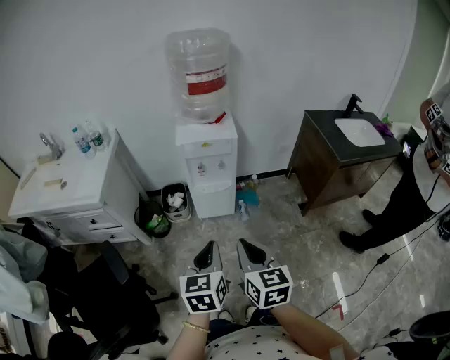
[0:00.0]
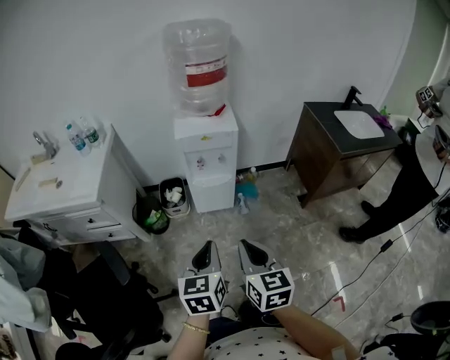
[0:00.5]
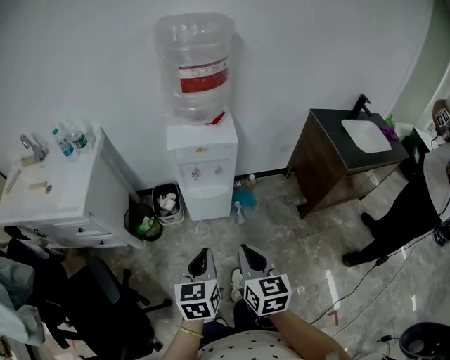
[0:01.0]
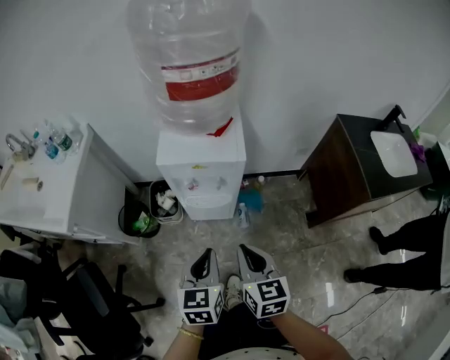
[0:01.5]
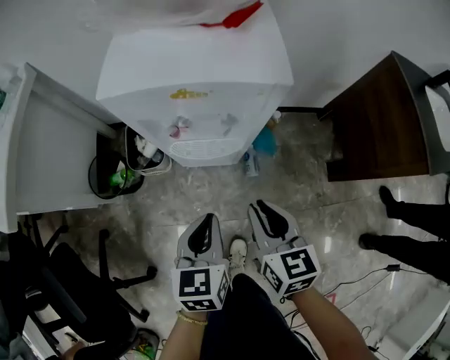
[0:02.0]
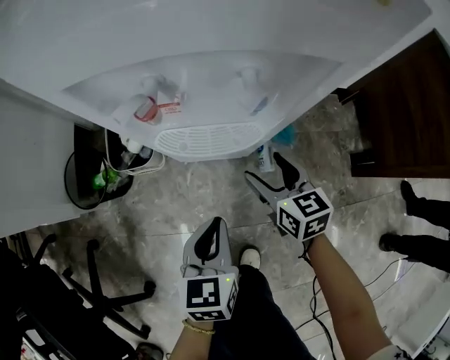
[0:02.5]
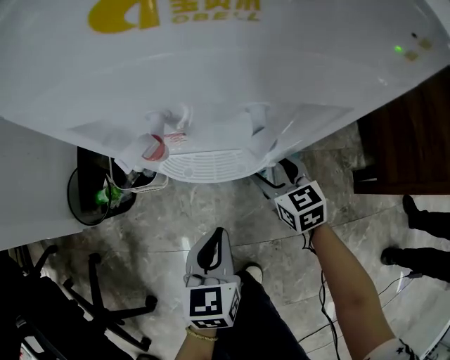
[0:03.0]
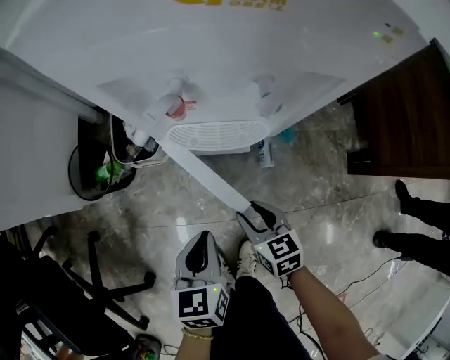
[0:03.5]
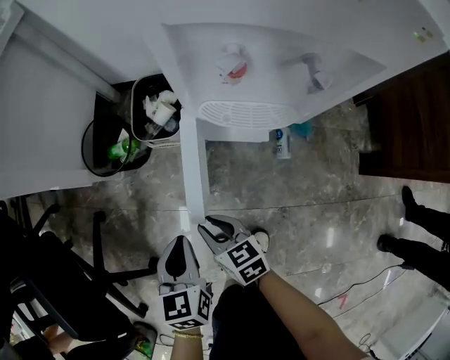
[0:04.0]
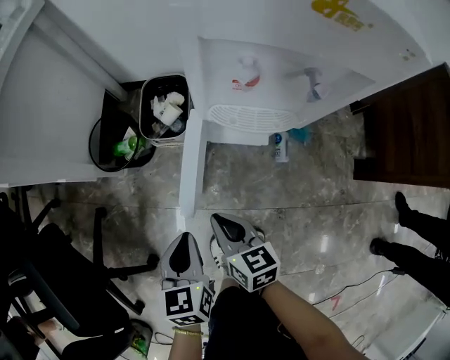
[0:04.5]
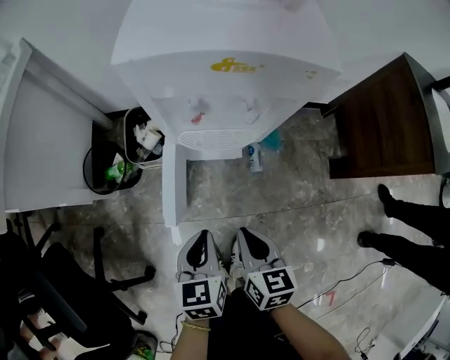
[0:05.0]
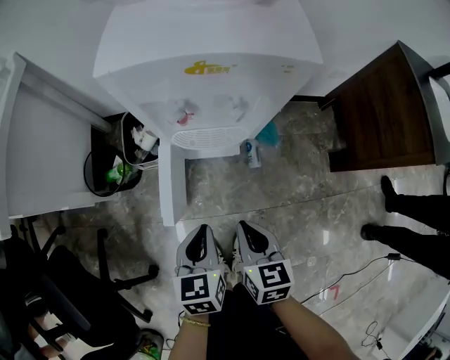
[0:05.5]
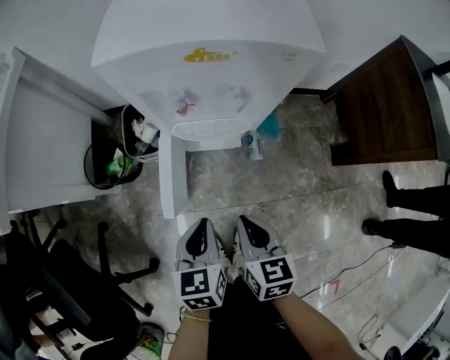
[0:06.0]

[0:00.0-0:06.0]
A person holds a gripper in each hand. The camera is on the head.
0:00.0 to 0:02.0: Both grippers travel together forward and downward, roughly 40 cm.
0:02.0 to 0:04.0: The right gripper is displaced downward by about 25 cm, swivels about 30 degrees, and opens and closes again; the left gripper ends up approximately 25 cm from where it was.
0:04.0 to 0:06.0: The right gripper heads upward, covering roughly 20 cm, and turns by some 30 degrees. The left gripper changes place by about 15 cm.

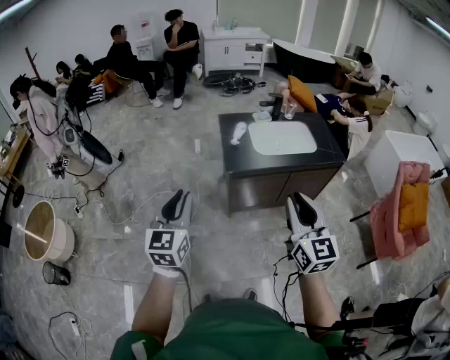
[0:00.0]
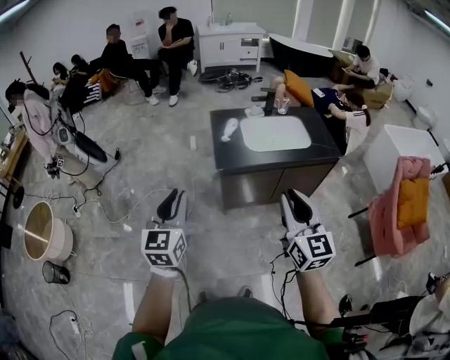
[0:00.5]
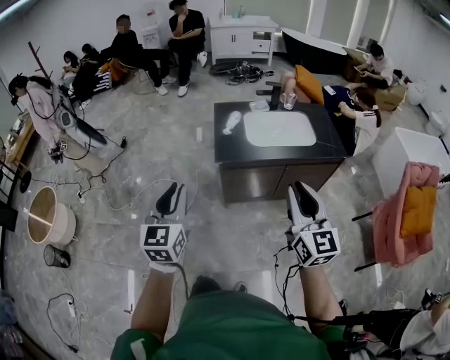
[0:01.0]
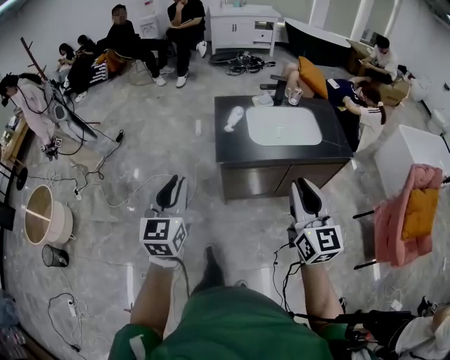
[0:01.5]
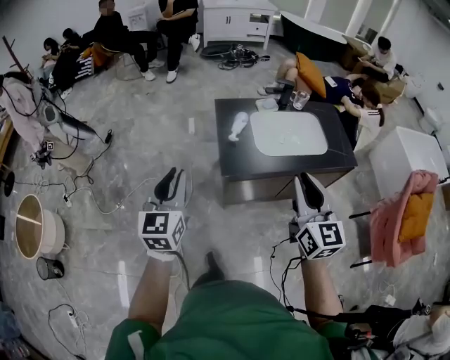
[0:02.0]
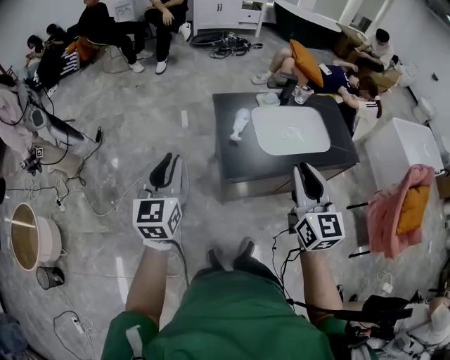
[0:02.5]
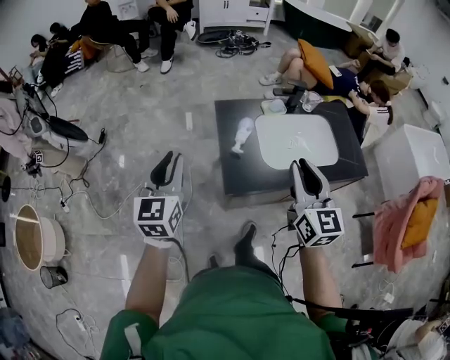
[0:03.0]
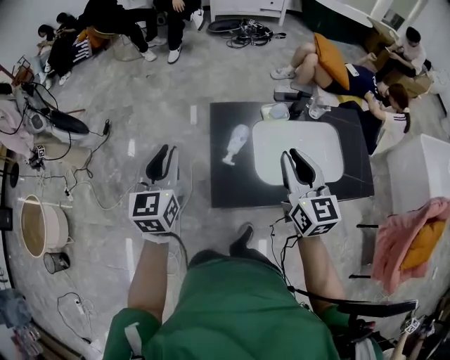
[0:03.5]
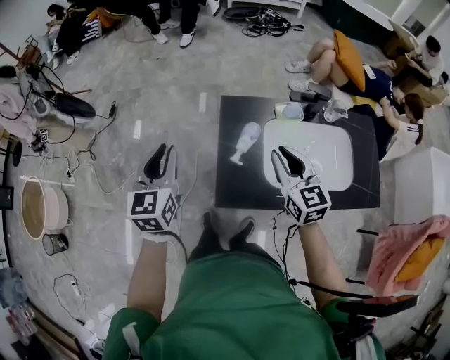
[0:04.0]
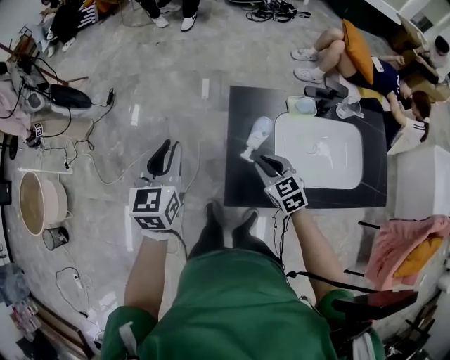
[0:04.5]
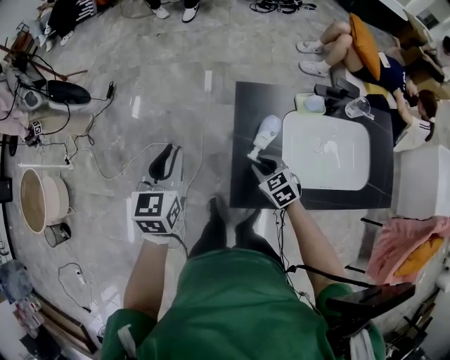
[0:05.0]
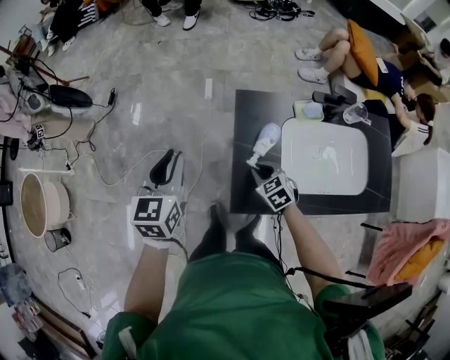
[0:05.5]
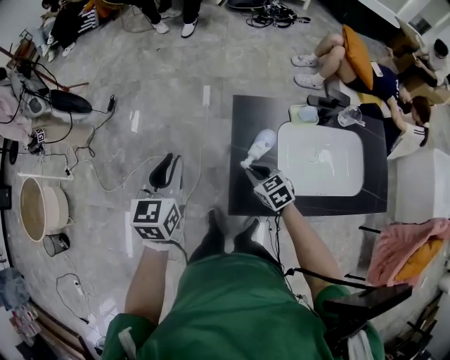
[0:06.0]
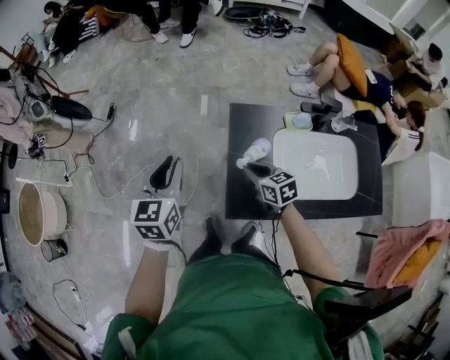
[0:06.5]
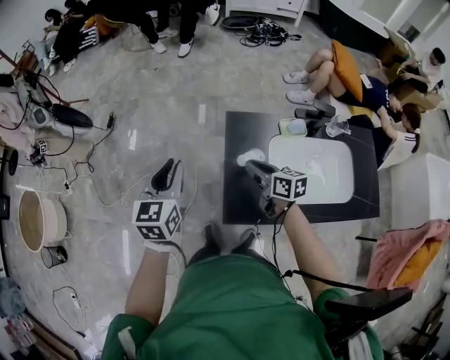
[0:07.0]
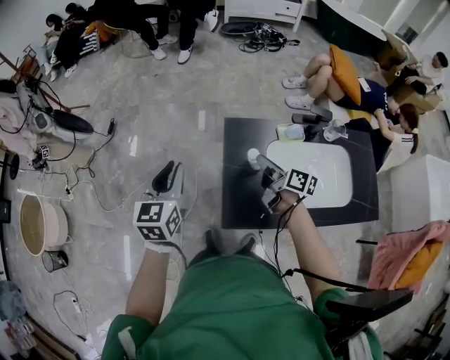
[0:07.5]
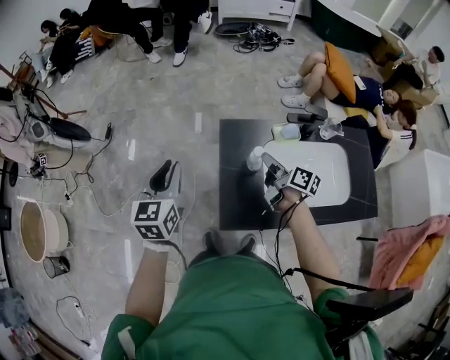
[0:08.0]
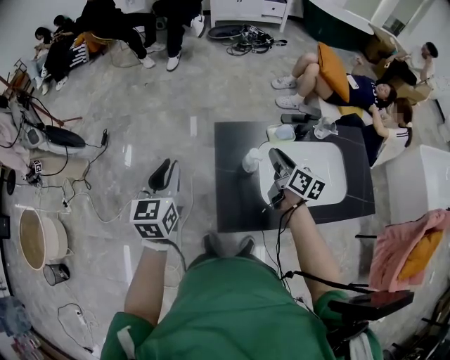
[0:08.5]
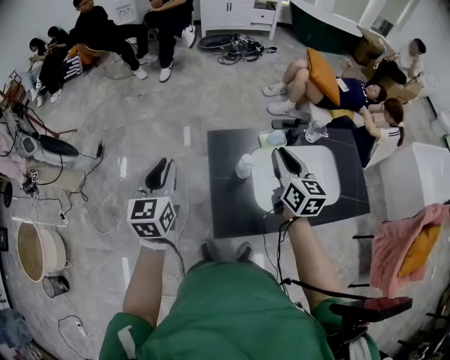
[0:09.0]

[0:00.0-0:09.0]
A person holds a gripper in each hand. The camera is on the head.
0:00.0 to 0:02.0: The two grippers go some 25 cm forward.
0:02.0 to 0:04.5: The right gripper travels forward and downward by approximately 50 cm, and tilts its fingers roughly 40 degrees downward, while the left gripper is displaced forward by approximately 35 cm.
0:04.5 to 0:07.0: The right gripper is displaced upward by some 5 cm, and swivels some 40 degrees.
0:07.0 to 0:09.0: The right gripper moves to the right and upward, about 20 cm, and rotates approximately 40 degrees. Meanwhile the left gripper moves roughly 5 cm.

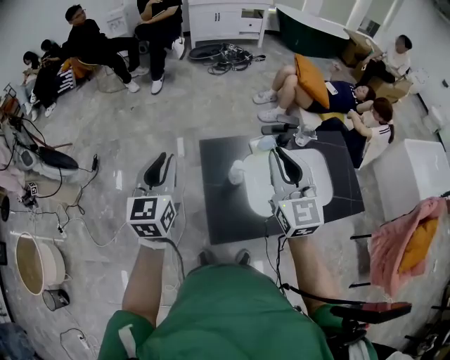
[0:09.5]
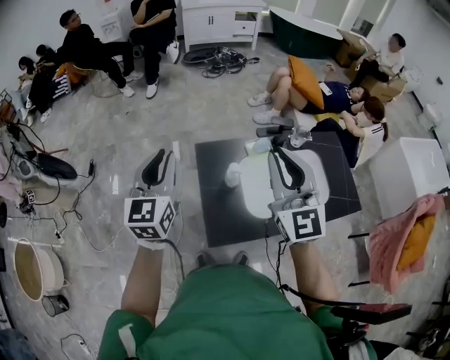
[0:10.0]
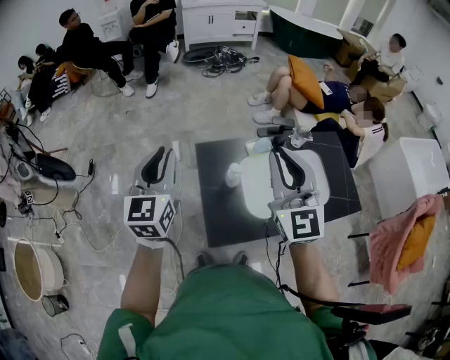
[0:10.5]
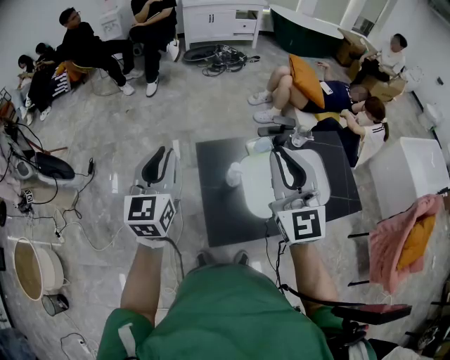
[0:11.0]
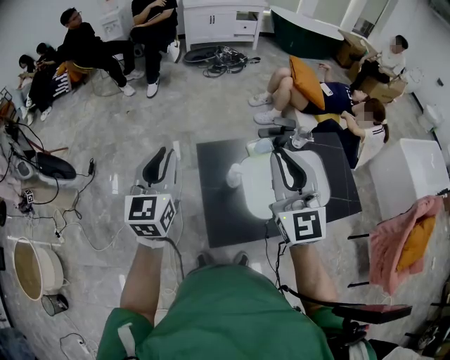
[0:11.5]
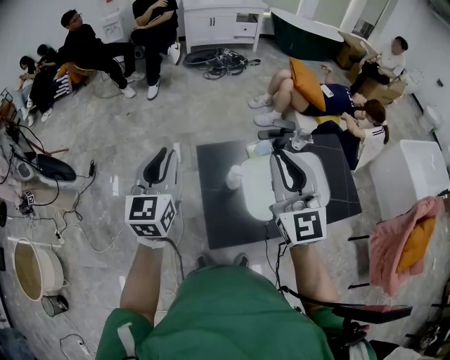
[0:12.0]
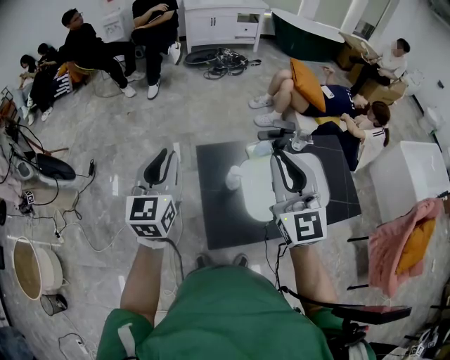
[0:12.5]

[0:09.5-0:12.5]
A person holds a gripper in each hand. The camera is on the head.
0:09.5 to 0:11.0: There are only small adjustments of the grippers.
0:11.0 to 0:12.5: Neither gripper changes place.

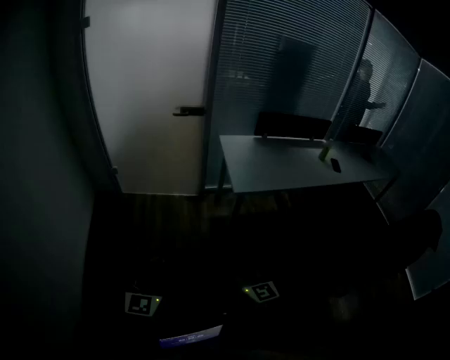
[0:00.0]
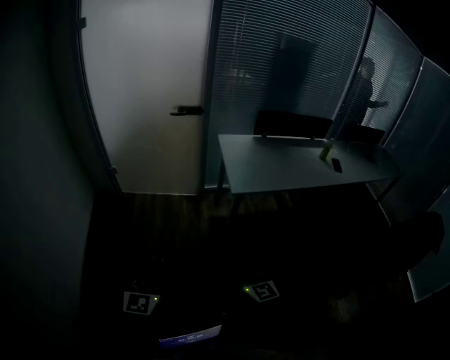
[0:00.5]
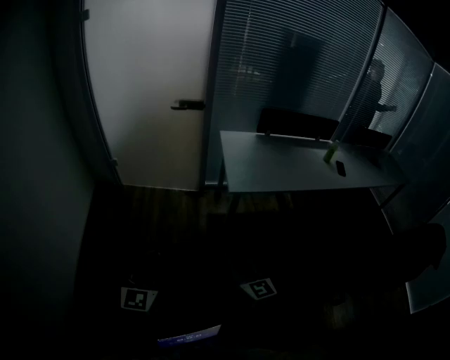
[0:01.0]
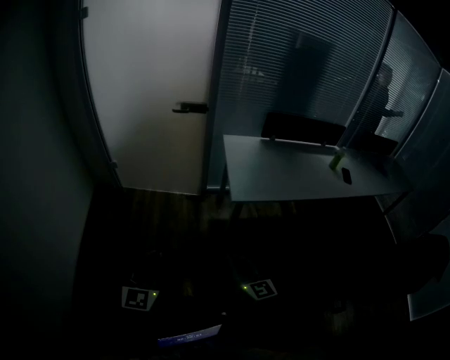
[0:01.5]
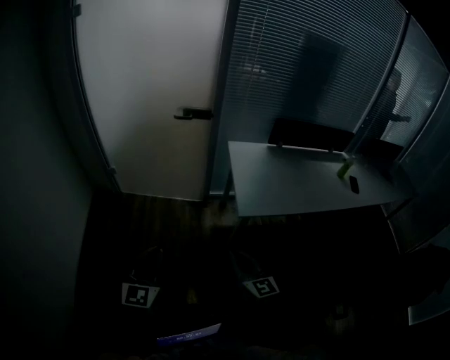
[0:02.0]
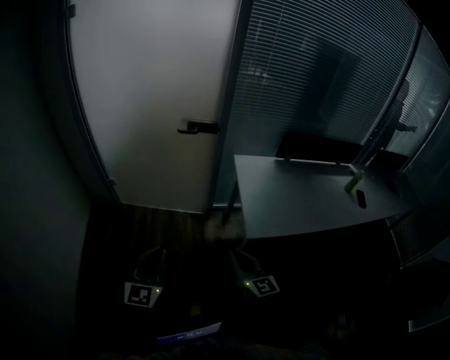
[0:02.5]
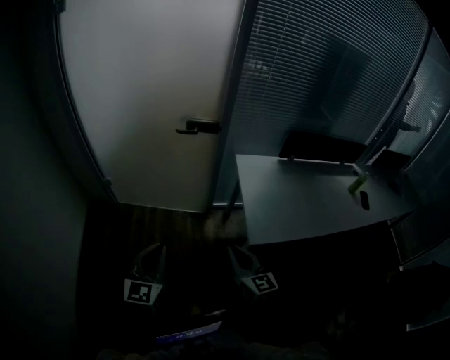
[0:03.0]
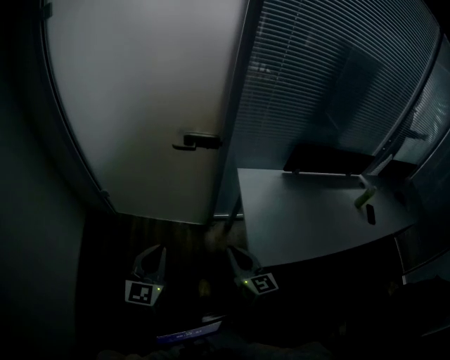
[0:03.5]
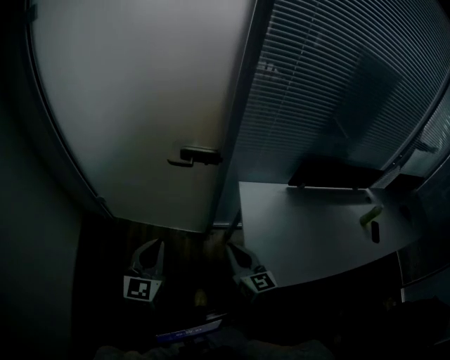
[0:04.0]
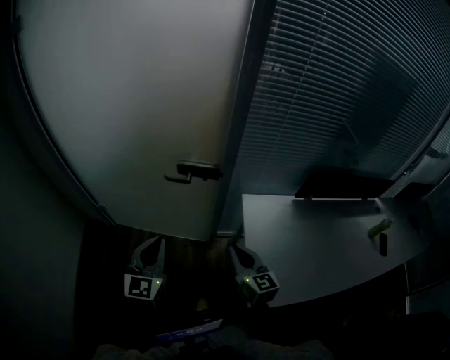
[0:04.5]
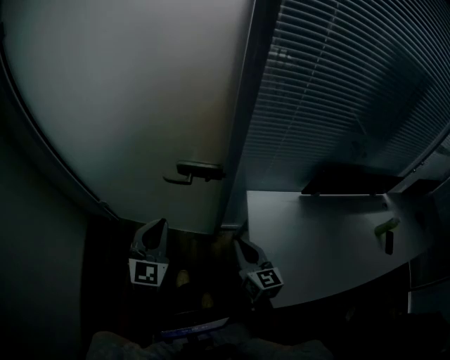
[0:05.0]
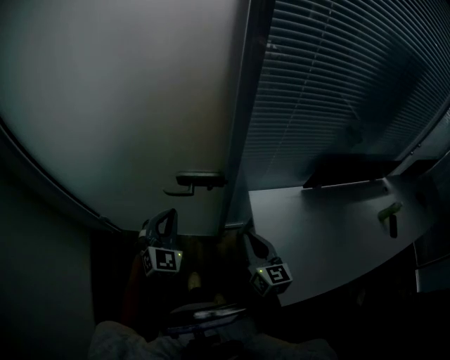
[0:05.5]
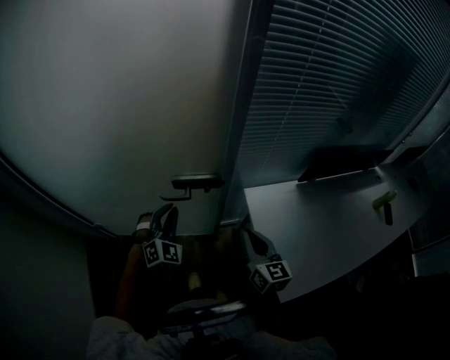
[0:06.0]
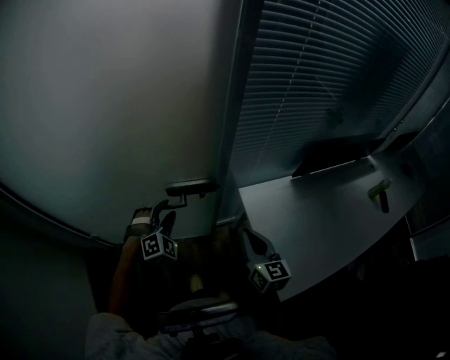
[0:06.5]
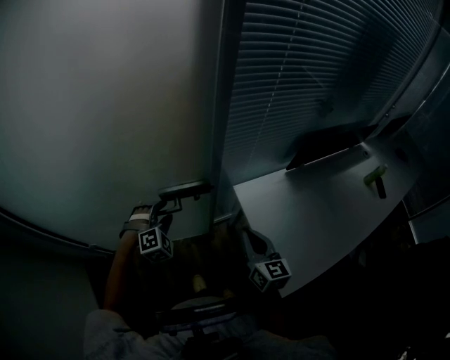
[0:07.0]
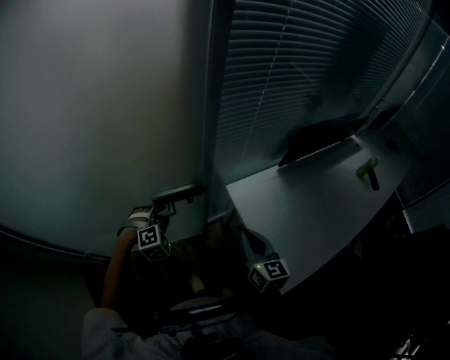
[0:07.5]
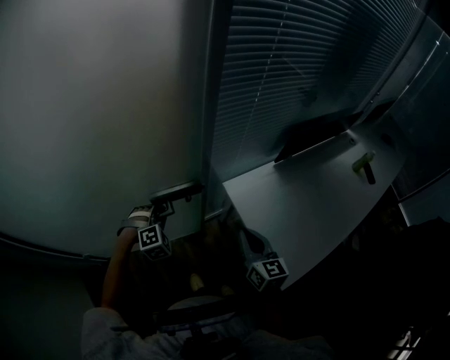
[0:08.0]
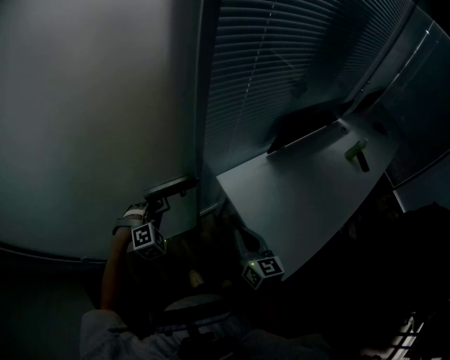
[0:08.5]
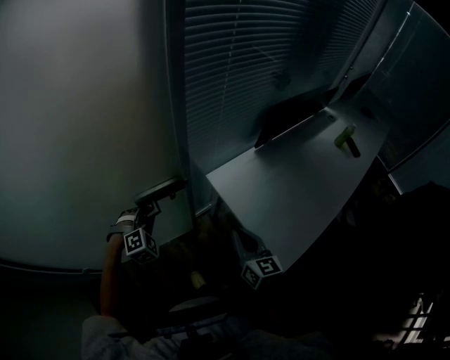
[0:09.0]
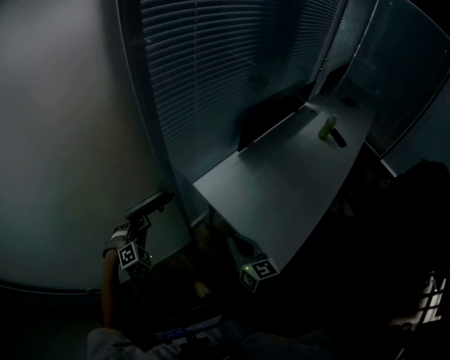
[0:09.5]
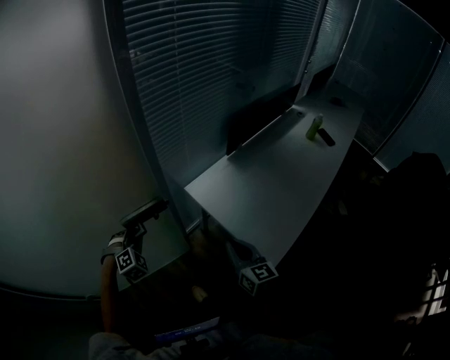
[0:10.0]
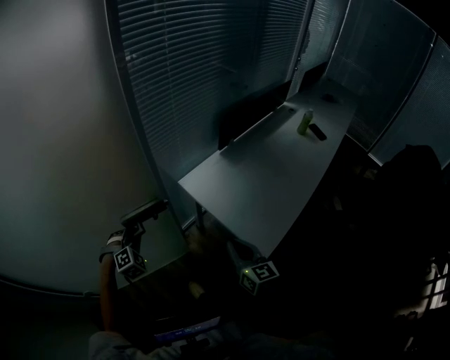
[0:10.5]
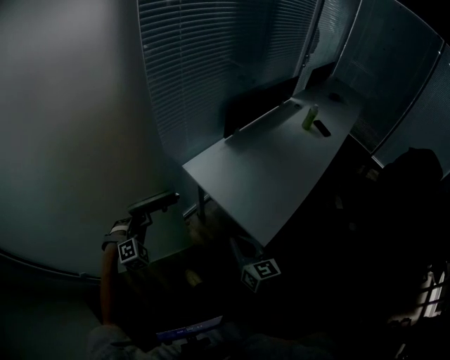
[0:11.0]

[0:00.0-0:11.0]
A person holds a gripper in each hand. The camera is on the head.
0:00.0 to 0:02.0: Both grippers move forward, approximately 20 cm.
0:02.0 to 0:03.5: Both grippers travel together forward, approximately 30 cm.
0:03.5 to 0:05.5: The two grippers go about 30 cm forward. The left gripper changes its angle by some 30 degrees.
0:05.5 to 0:07.5: The left gripper moves downward and forward, some 20 cm, tilts its fingers some 30 degrees downward, and opens its fingers.
0:07.5 to 0:09.0: The left gripper closes its fingers.
0:09.0 to 0:11.0: The grippers both shift backward by roughly 15 cm.
